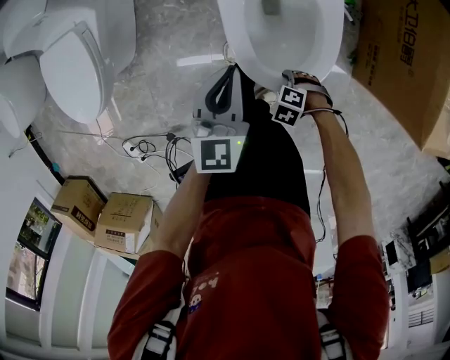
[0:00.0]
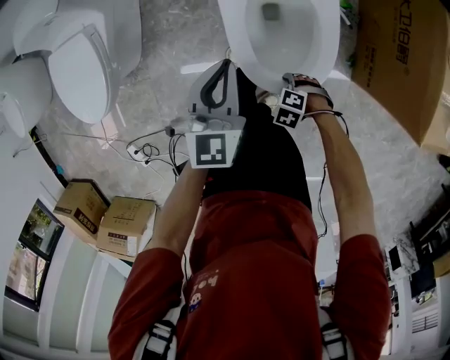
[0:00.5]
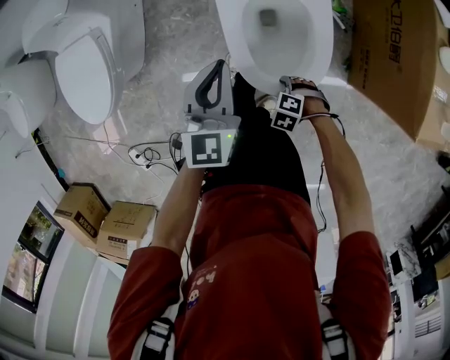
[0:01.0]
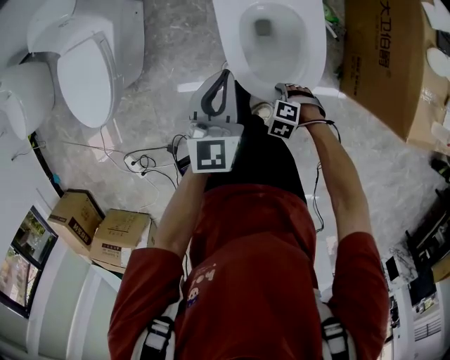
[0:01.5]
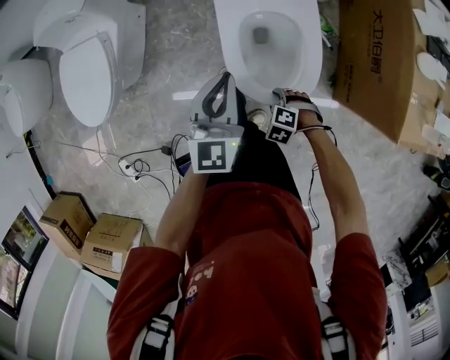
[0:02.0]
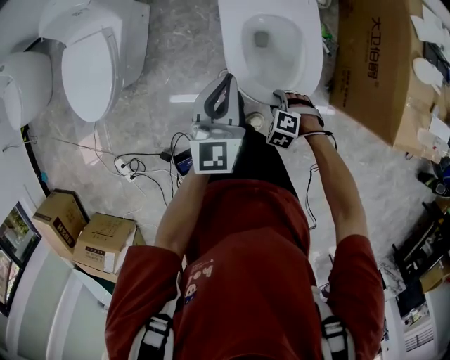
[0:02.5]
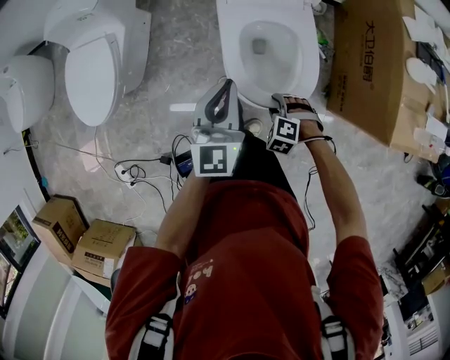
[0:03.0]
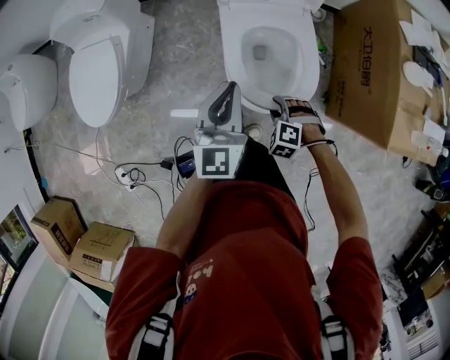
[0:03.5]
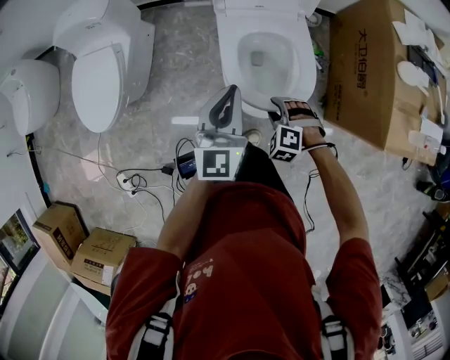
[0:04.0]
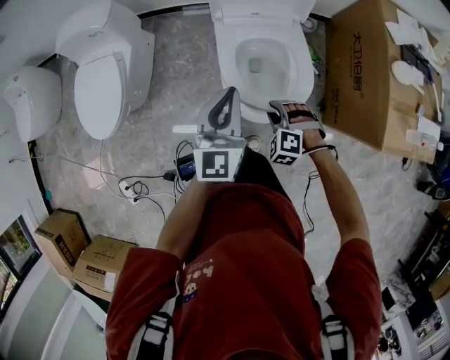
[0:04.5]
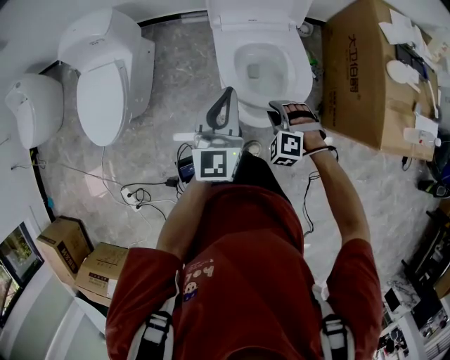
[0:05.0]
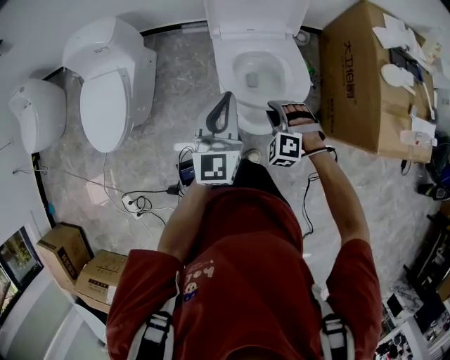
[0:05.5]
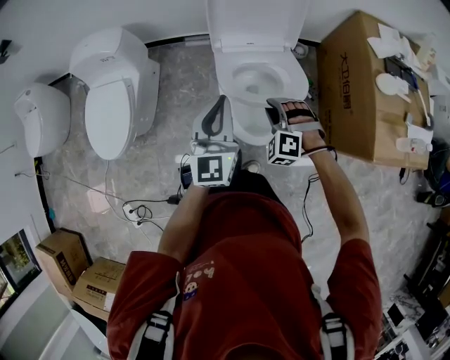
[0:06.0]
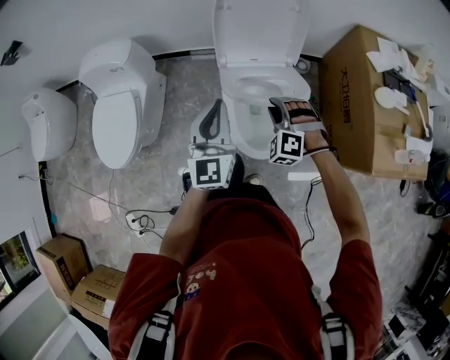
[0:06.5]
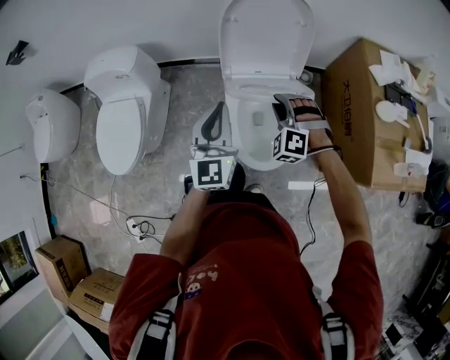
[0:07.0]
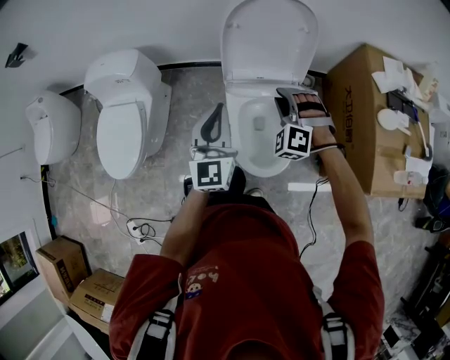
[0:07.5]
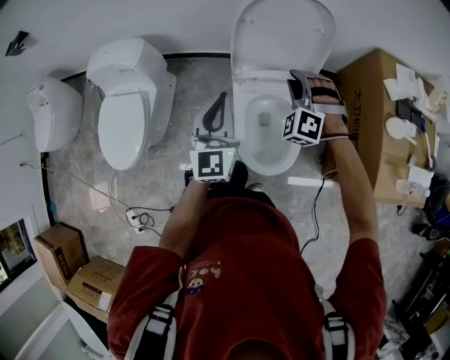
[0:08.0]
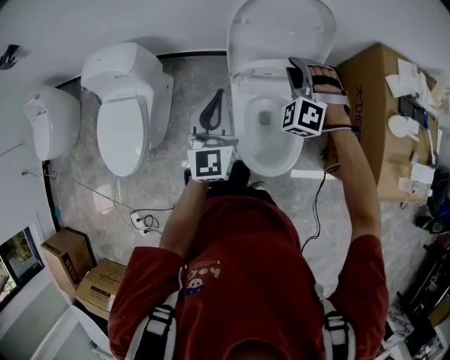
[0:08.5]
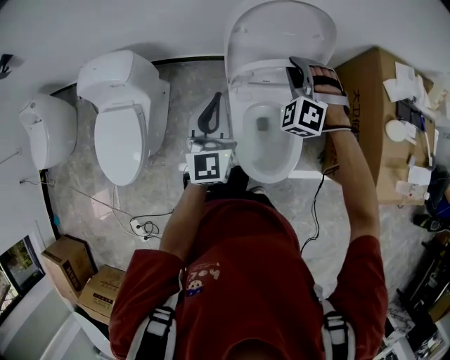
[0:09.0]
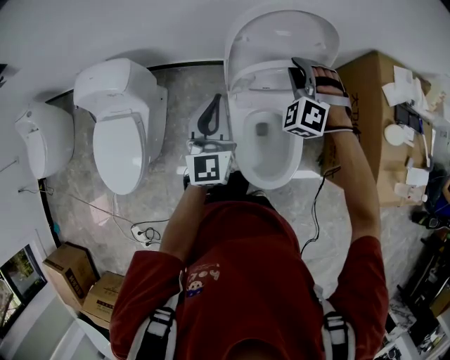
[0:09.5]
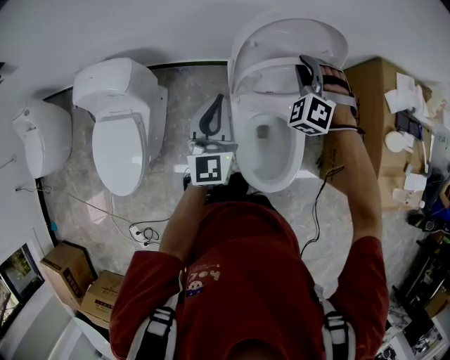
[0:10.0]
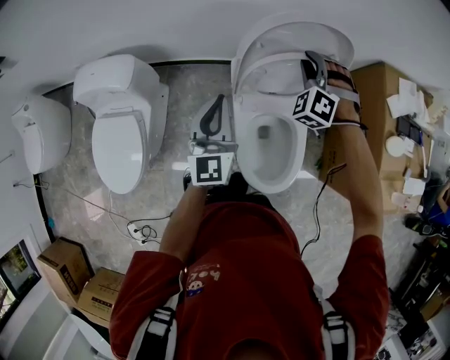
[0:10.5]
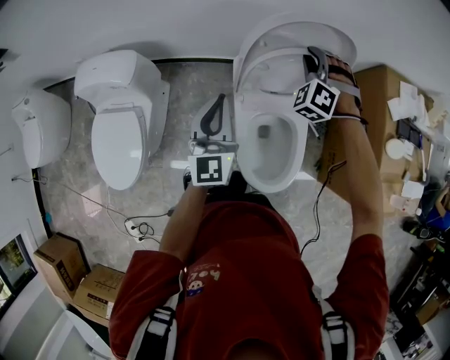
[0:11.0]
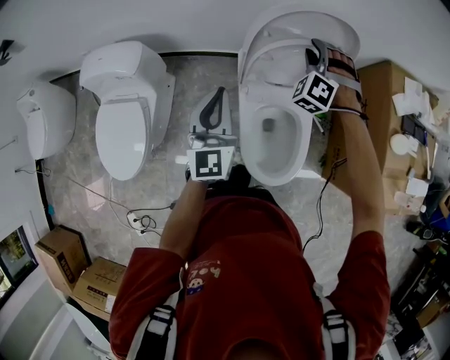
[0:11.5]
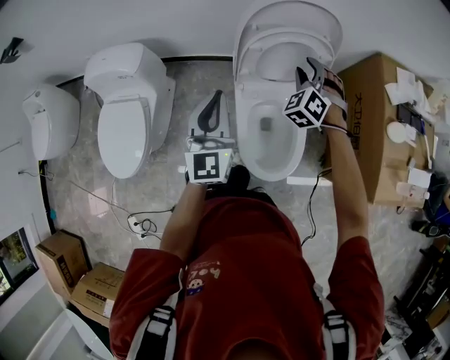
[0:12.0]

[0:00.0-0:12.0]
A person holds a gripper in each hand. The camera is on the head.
0:00.0 to 0:02.0: Both grippers travel together upward, about 10 cm.
0:02.0 to 0:04.0: The right gripper heads upward, covering roughly 10 cm, and rotates approximately 20 degrees. The left gripper travels upward by some 5 cm.
0:04.0 to 0:06.0: The right gripper shifts roughly 15 cm upward and forward, and closes its fingers. The left gripper travels upward by roughly 5 cm.
0:06.0 to 0:08.0: The left gripper goes some 10 cm forward, while the right gripper heads forward and upward, covering about 25 cm.
0:08.0 to 0:10.0: The grippers both shift forward by some 15 cm.
0:10.0 to 0:12.0: Both grippers travel together backward, approximately 10 cm.

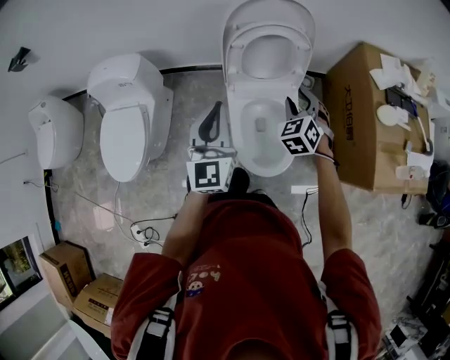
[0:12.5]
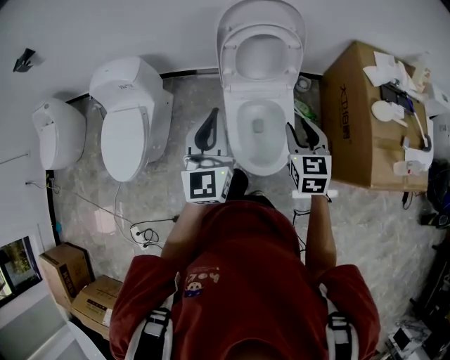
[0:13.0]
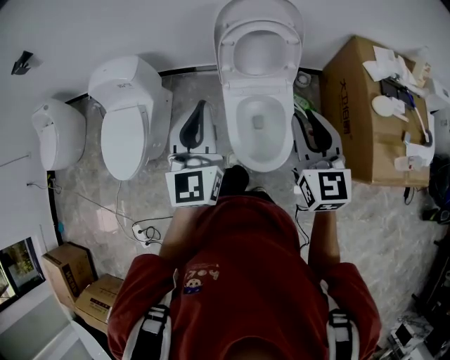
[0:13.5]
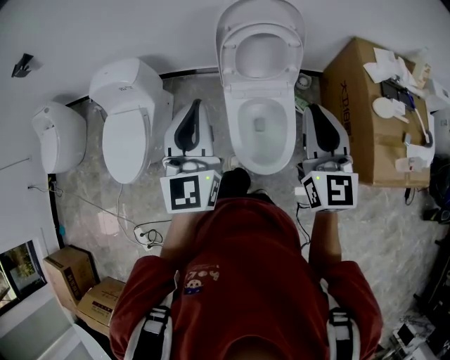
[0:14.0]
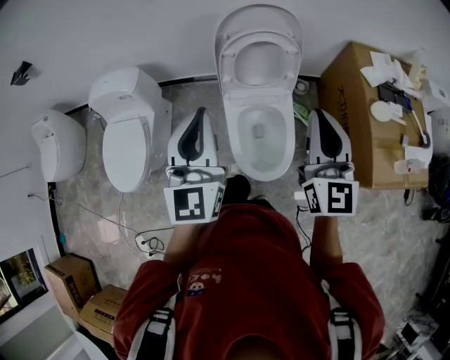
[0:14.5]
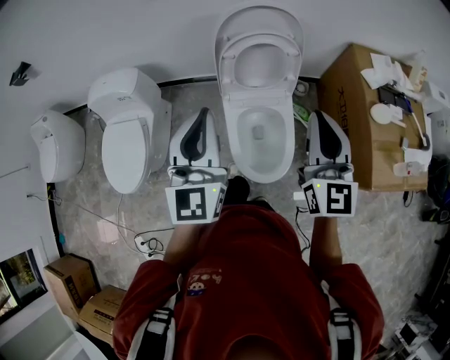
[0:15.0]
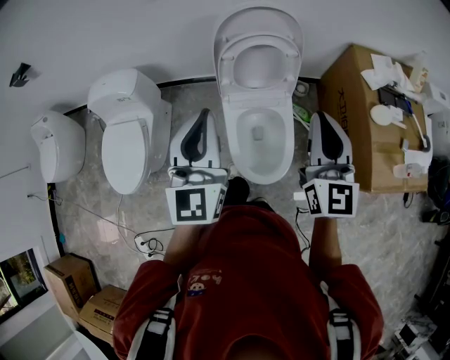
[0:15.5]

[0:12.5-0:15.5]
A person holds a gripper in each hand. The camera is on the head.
0:12.5 to 0:14.0: The right gripper travels upward and backward by roughly 25 cm, angles its fingers upward, by approximately 40 degrees, and closes up; the left gripper is displaced upward by some 10 cm.
0:14.0 to 0:15.5: There are only small adjustments of the grippers.

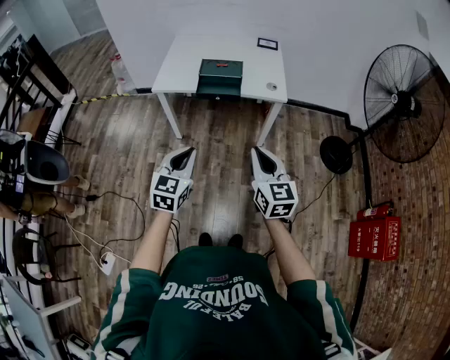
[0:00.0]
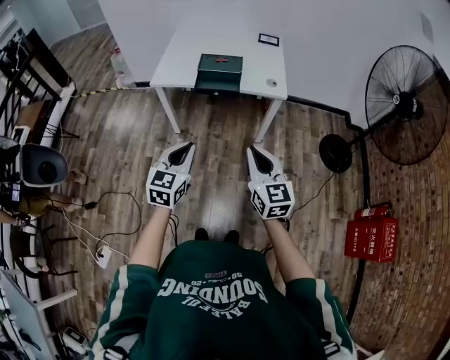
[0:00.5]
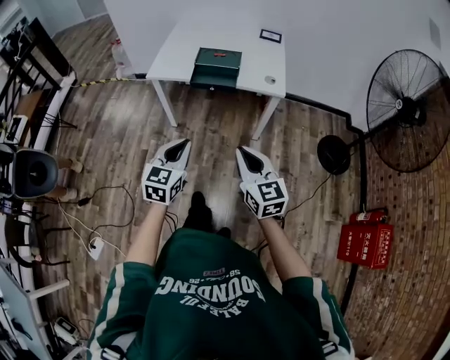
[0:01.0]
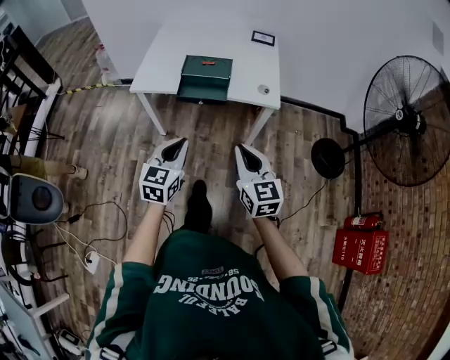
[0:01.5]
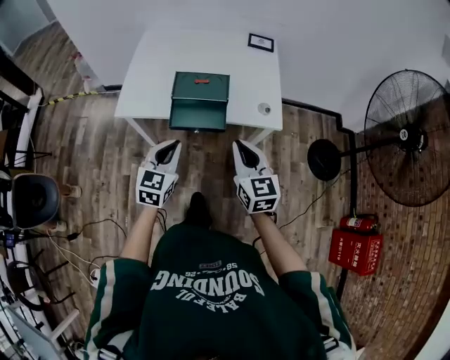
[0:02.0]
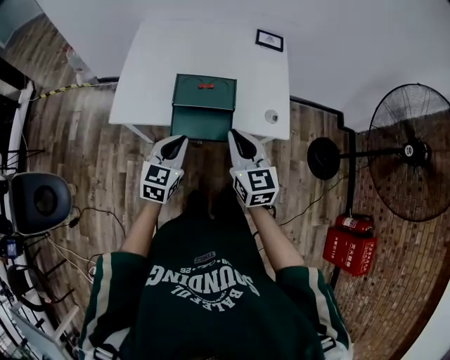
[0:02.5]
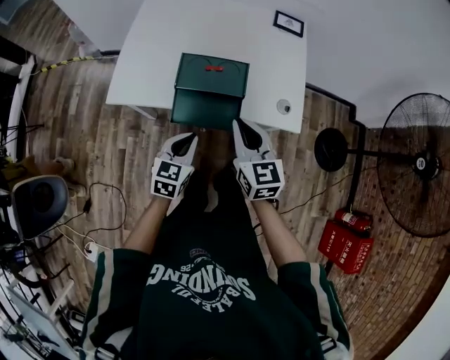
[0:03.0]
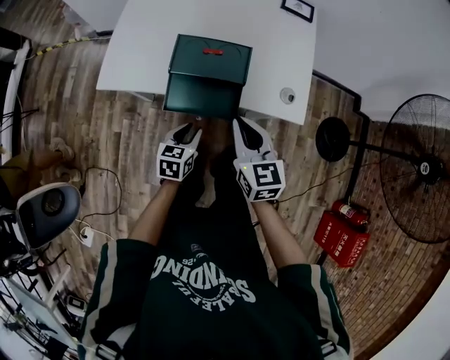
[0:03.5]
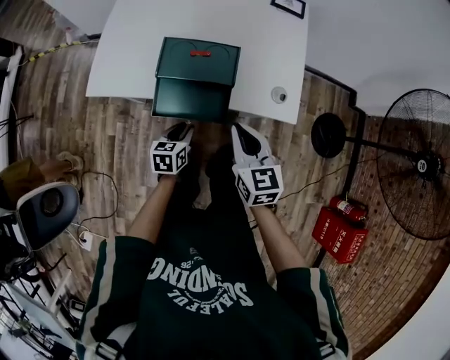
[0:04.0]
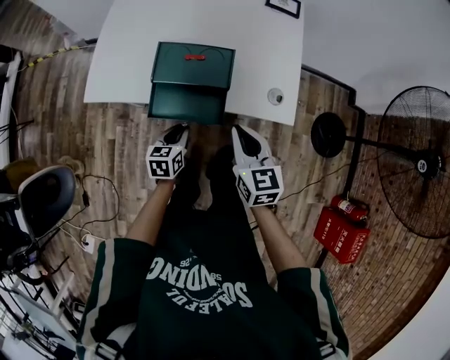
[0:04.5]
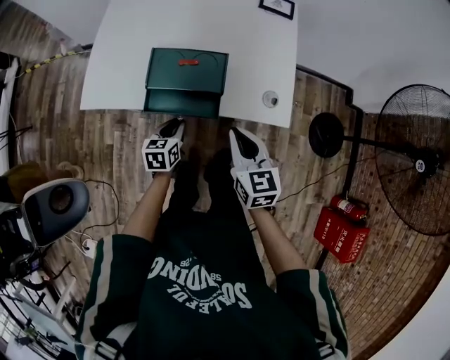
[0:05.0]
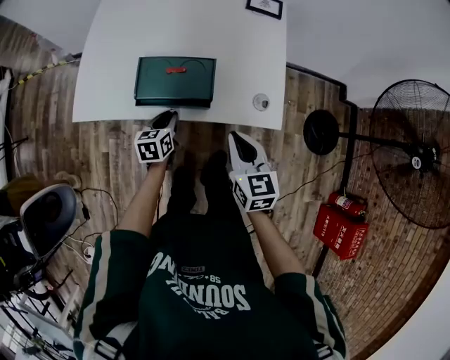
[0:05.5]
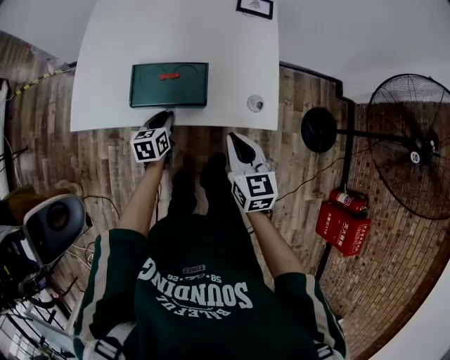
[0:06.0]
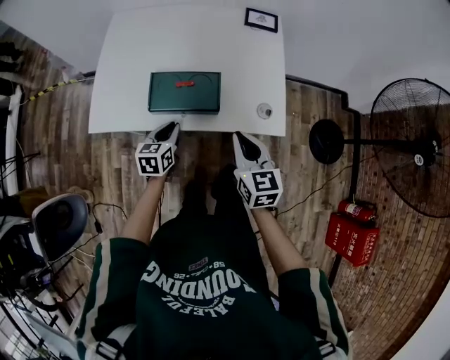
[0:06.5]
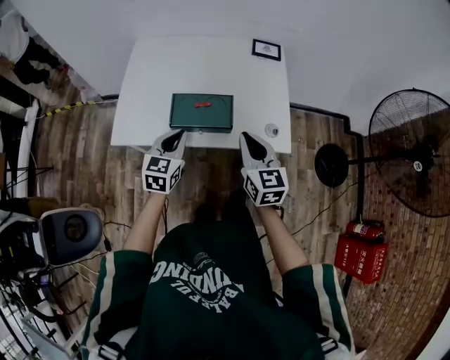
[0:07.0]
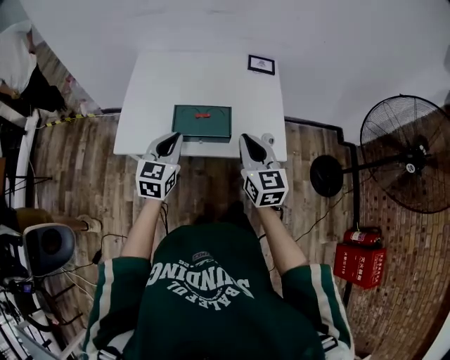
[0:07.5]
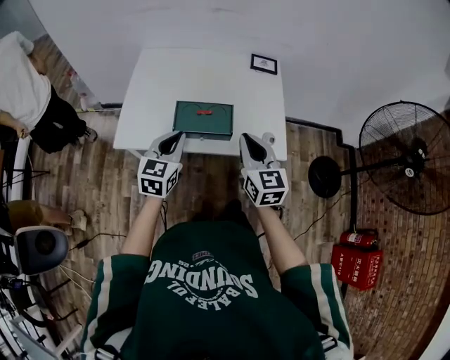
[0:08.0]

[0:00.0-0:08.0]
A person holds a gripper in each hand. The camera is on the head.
0:00.0 to 0:02.0: The grippers both shift forward by about 30 cm.
0:02.0 to 0:04.0: The right gripper moves forward and downward, approximately 15 cm. The left gripper shifts approximately 25 cm downward and forward, and turns by roughly 40 degrees.
0:04.0 to 0:06.0: The right gripper moves to the right, roughly 5 cm. Meanwhile the left gripper shifts approximately 10 cm forward.
0:06.0 to 0:08.0: The right gripper shifts some 15 cm upward and to the left. Meanwhile the left gripper is displaced upward by roughly 25 cm, and rotates some 30 degrees.

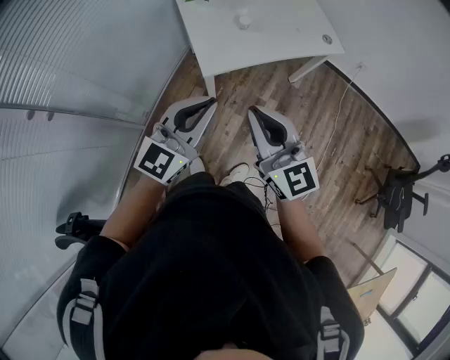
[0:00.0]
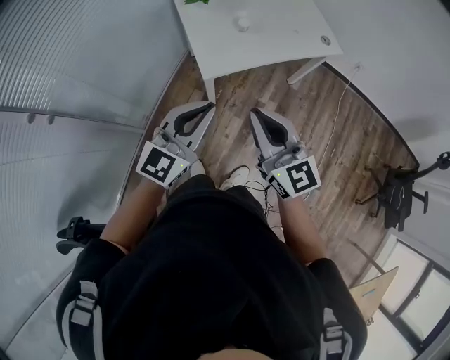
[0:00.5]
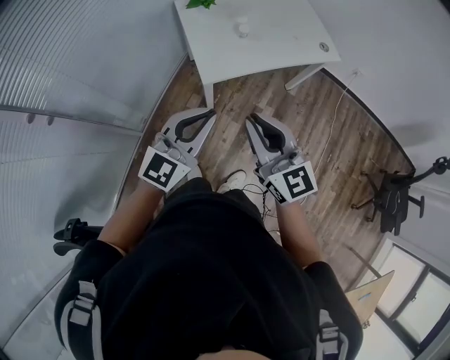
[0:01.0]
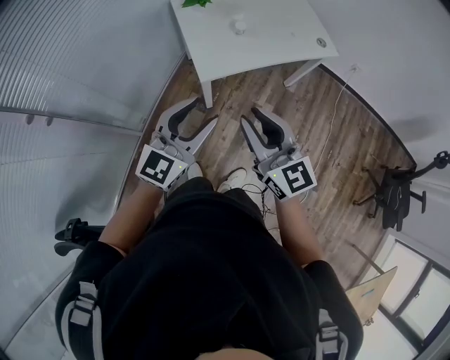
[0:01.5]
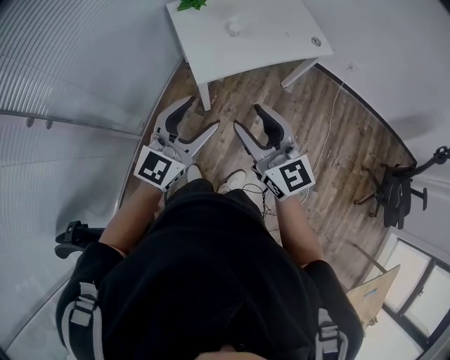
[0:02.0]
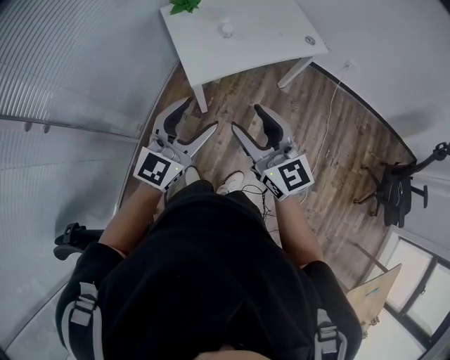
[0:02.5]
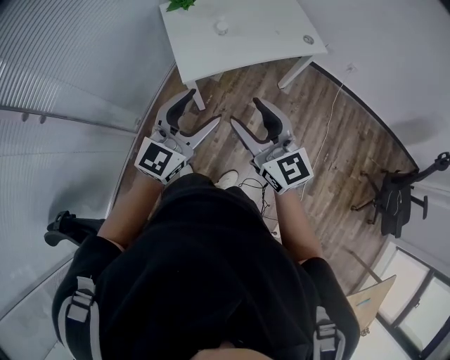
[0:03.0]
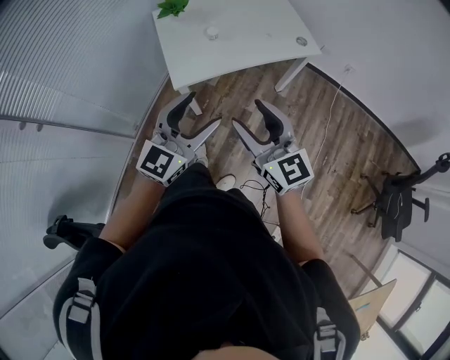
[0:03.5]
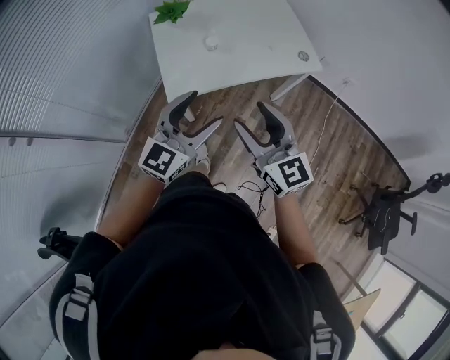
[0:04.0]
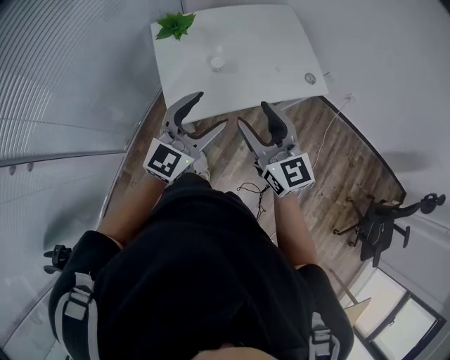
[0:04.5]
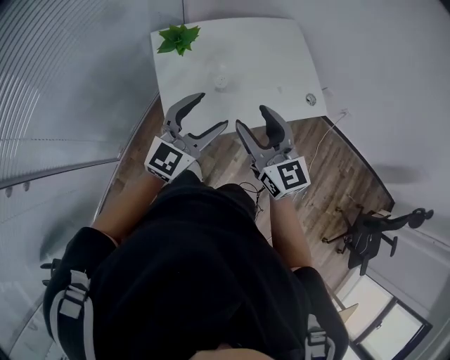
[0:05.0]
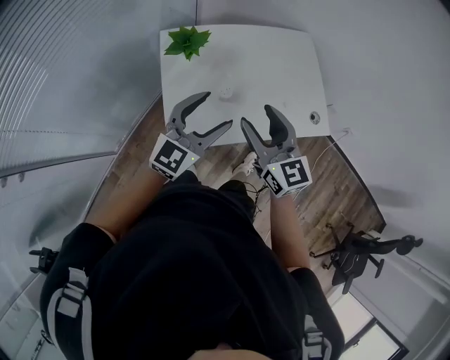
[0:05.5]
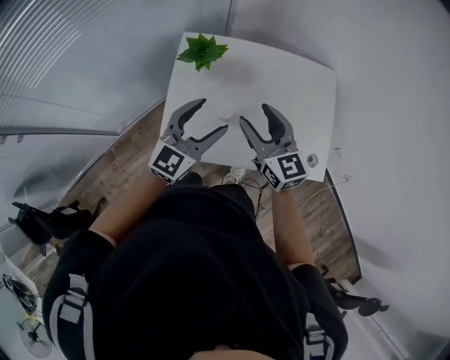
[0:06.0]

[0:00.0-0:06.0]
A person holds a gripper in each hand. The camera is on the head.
0:00.0 to 0:02.0: The right gripper opens; the left gripper opens.
0:02.0 to 0:04.0: Both grippers move to the right and forward, approximately 15 cm.
0:04.0 to 0:06.0: The two grippers go approximately 35 cm forward. The left gripper rotates approximately 20 degrees; the right gripper turns by roughly 20 degrees.
